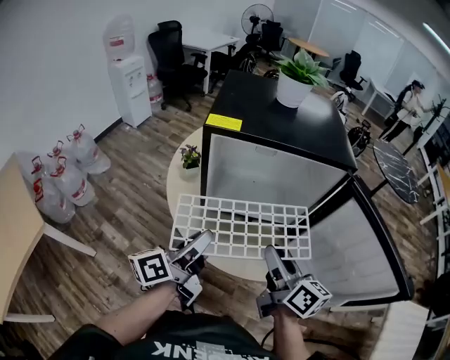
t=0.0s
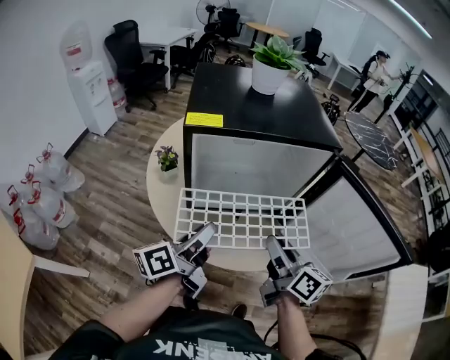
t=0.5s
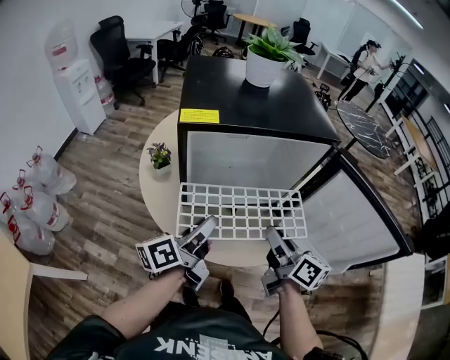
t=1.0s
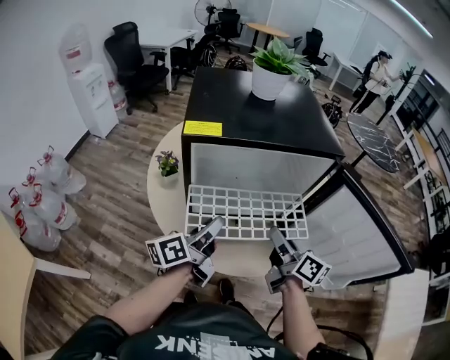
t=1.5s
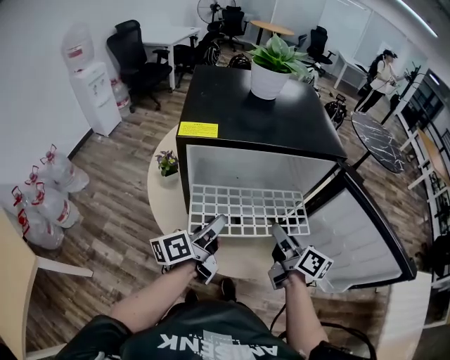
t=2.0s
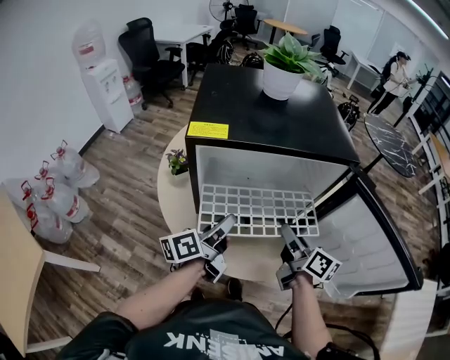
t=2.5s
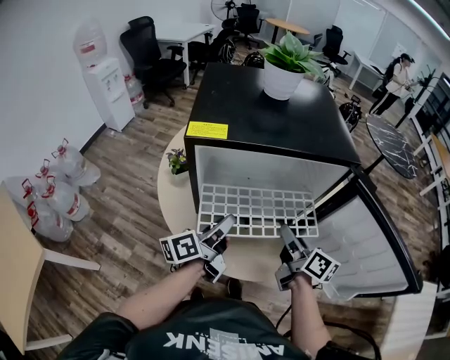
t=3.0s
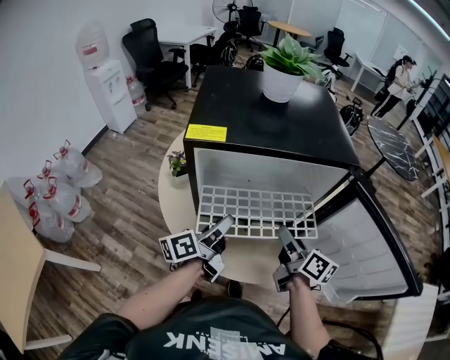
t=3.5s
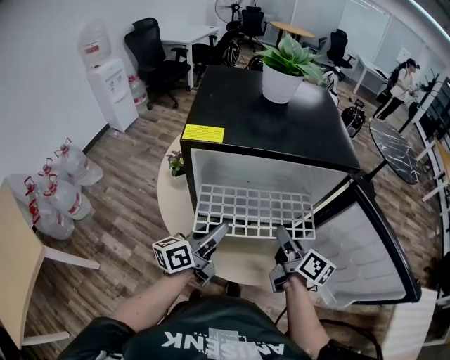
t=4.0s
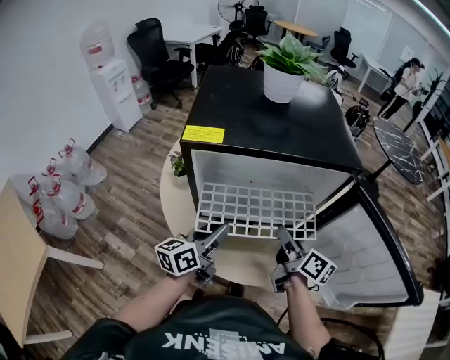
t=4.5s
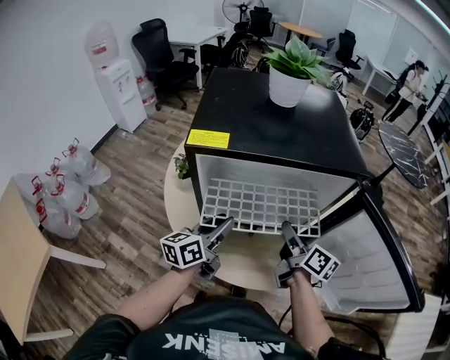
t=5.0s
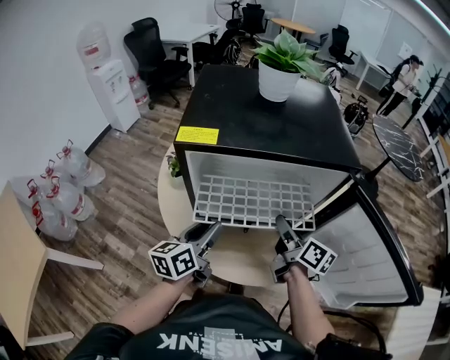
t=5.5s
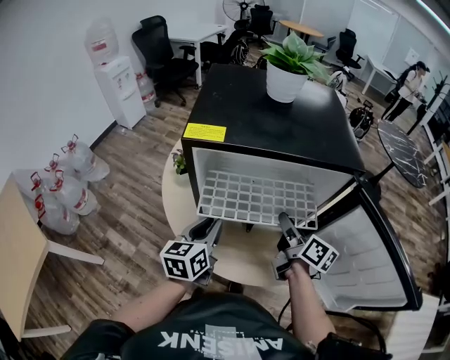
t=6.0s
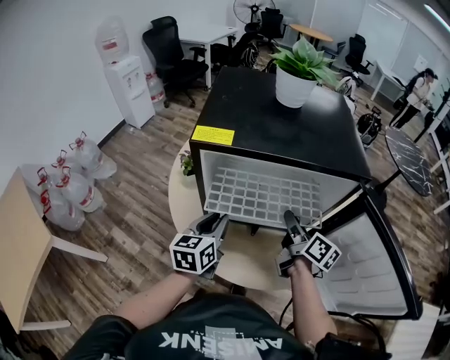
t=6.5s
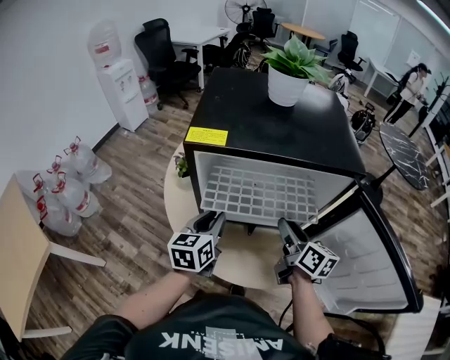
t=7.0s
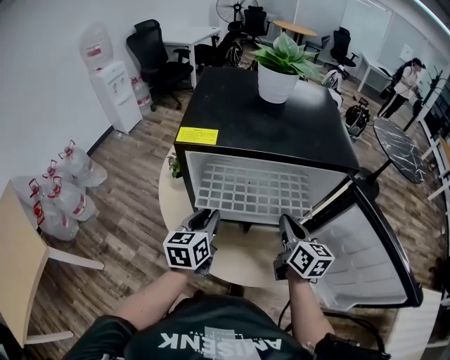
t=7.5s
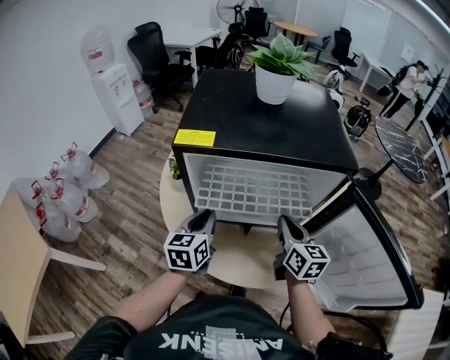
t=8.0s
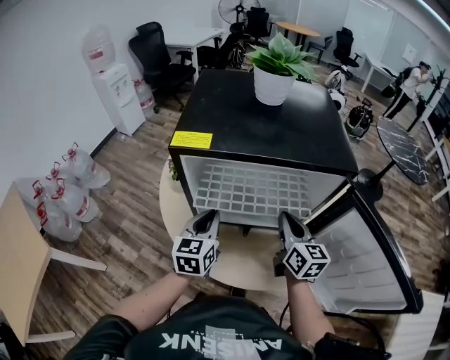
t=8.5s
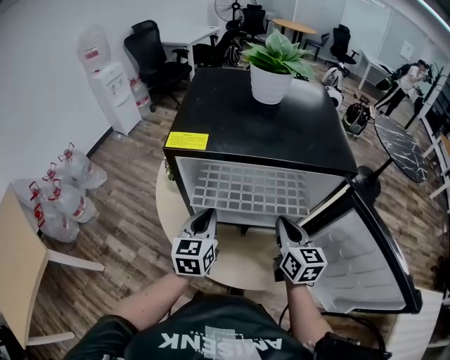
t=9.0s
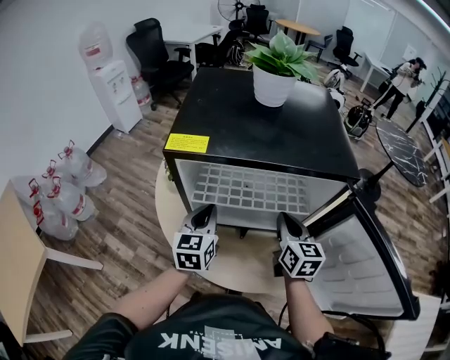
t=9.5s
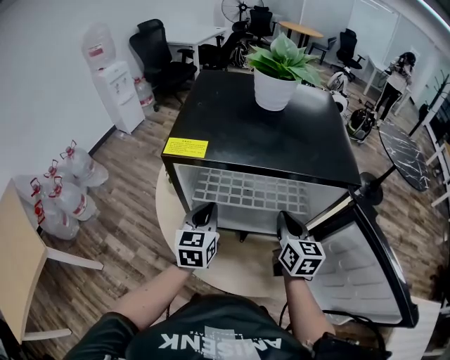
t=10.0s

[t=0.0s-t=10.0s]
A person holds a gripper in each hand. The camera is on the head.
t=0.0s to t=2.0s: The right gripper is displaced forward, downward and to the right by some 15 cm. The left gripper travels forward by about 10 cm.
t=2.0s to t=4.0s: The grippers move only a little.
t=4.0s to t=6.0s: The right gripper moves some 5 cm. Meanwhile the left gripper swivels about 30 degrees.
t=6.0s to t=8.0s: The right gripper rotates about 30 degrees, and closes up.
t=8.0s to t=10.0s: The two grippers go about 5 cm forward.

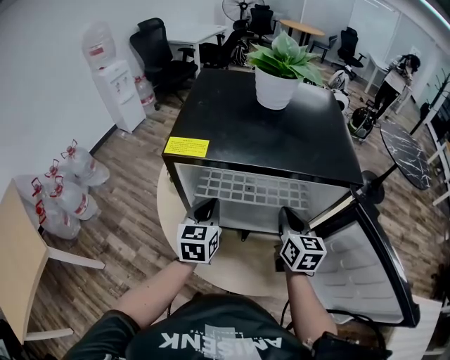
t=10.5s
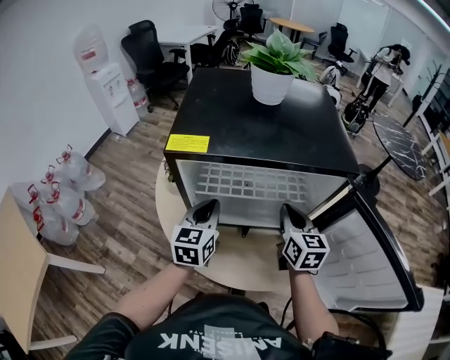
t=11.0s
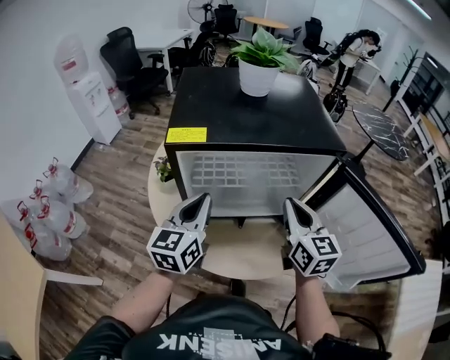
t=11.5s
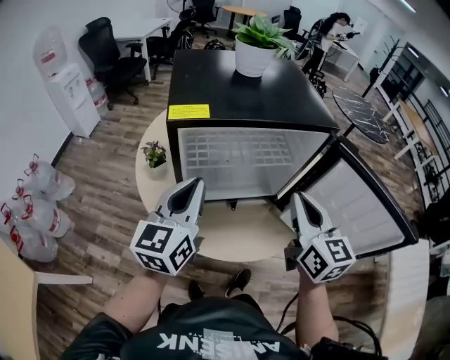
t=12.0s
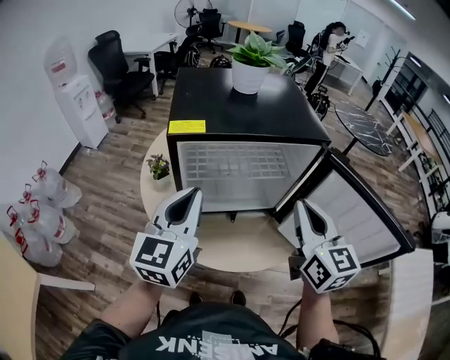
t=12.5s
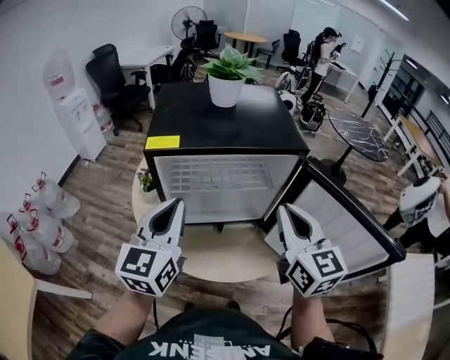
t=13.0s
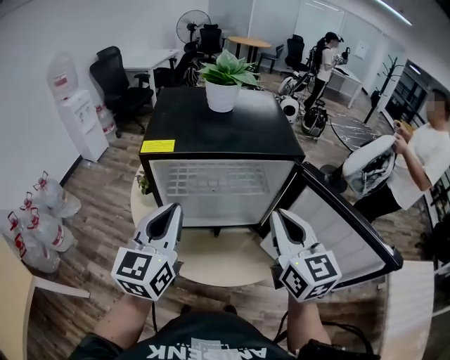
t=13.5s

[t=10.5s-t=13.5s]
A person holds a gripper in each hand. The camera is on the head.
t=10.5s to t=12.0s: The right gripper heads backward and upward, covering some 20 cm, while the left gripper shifts about 15 cm upward and backward, and turns by some 30 degrees.
t=12.0s to t=13.5s: The left gripper changes place by about 5 cm. The right gripper moves approximately 5 cm.

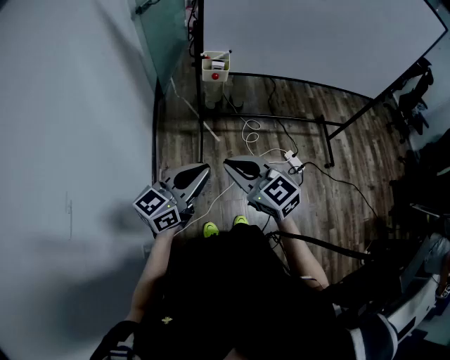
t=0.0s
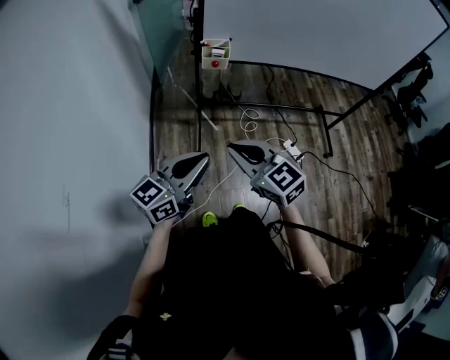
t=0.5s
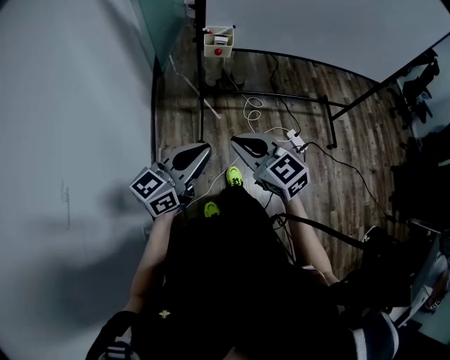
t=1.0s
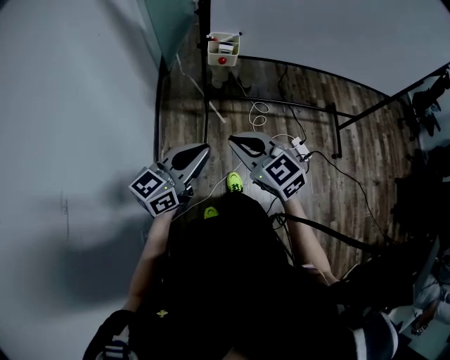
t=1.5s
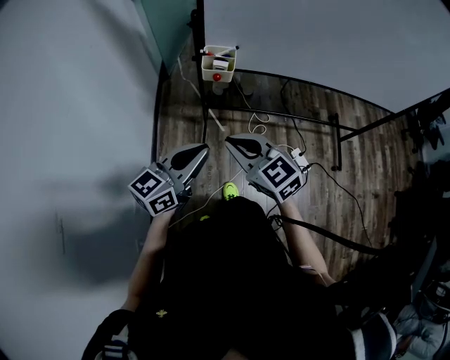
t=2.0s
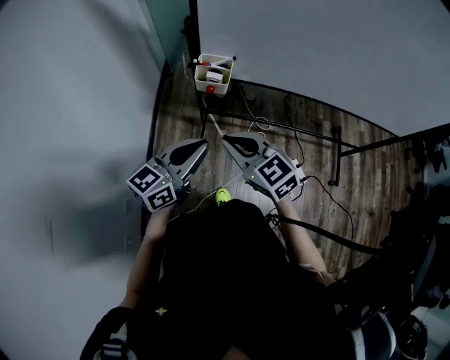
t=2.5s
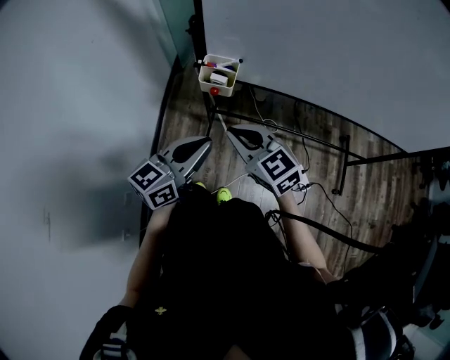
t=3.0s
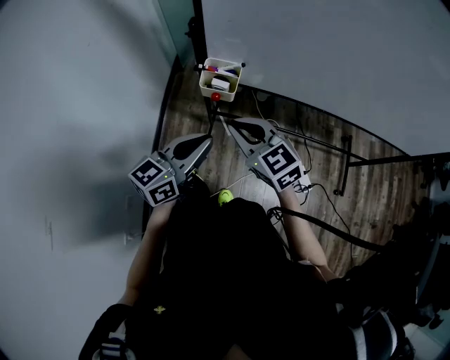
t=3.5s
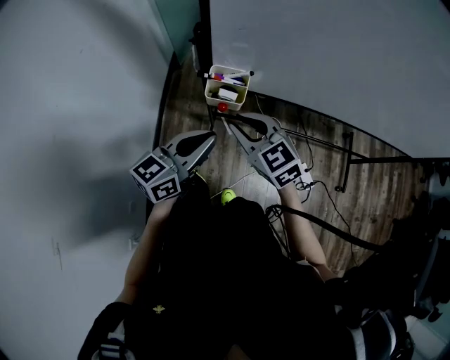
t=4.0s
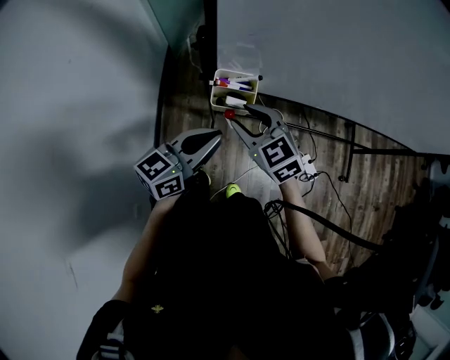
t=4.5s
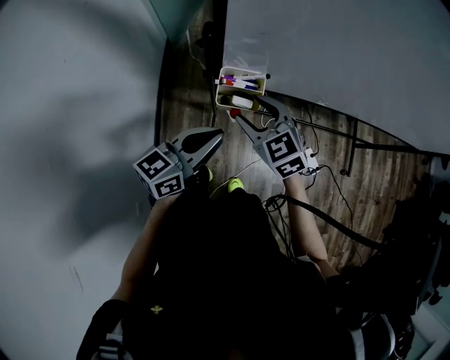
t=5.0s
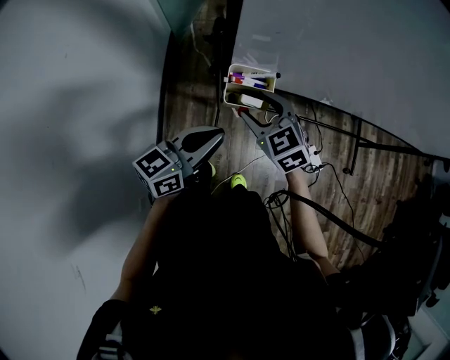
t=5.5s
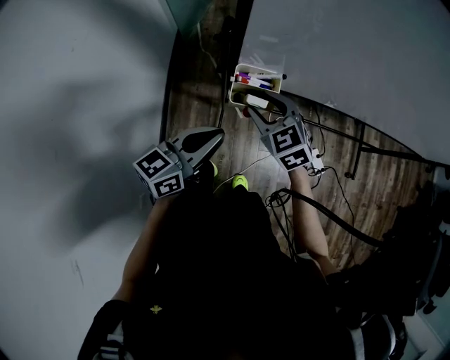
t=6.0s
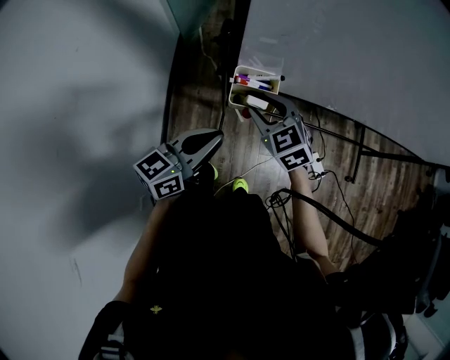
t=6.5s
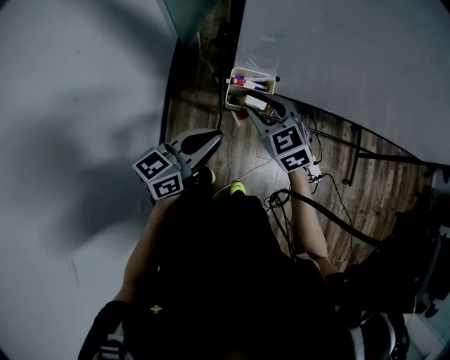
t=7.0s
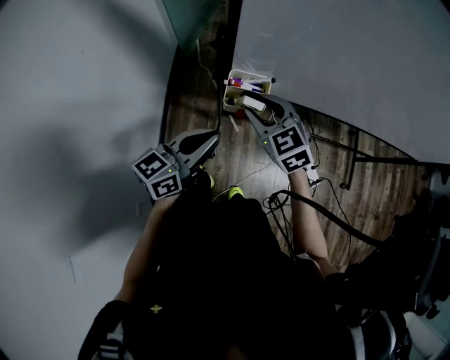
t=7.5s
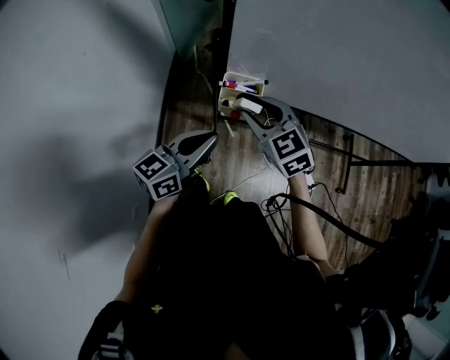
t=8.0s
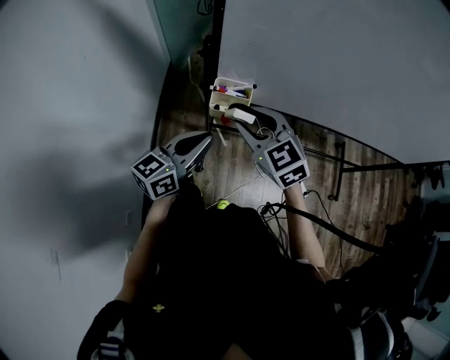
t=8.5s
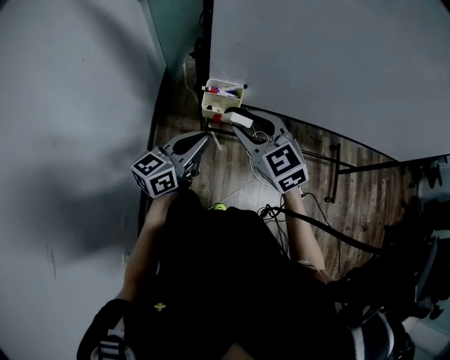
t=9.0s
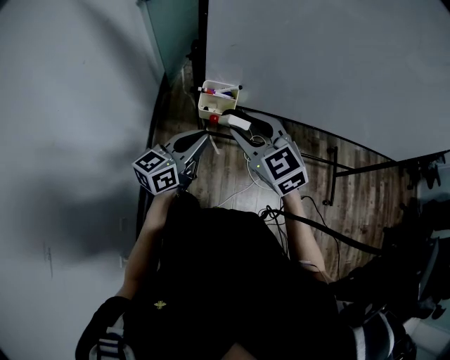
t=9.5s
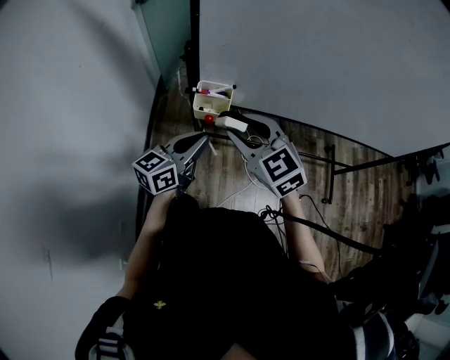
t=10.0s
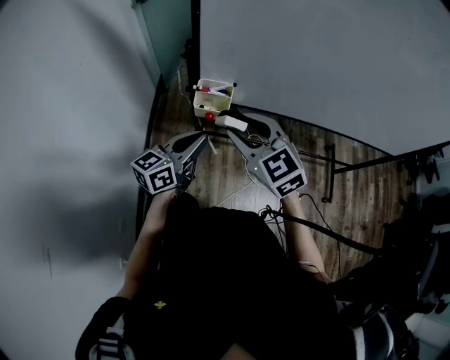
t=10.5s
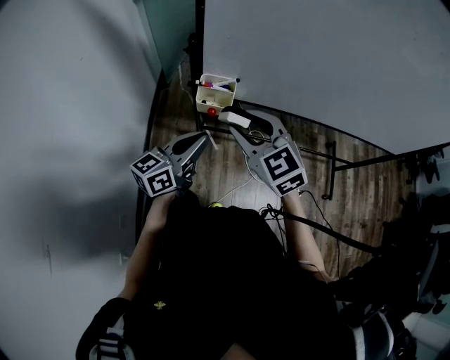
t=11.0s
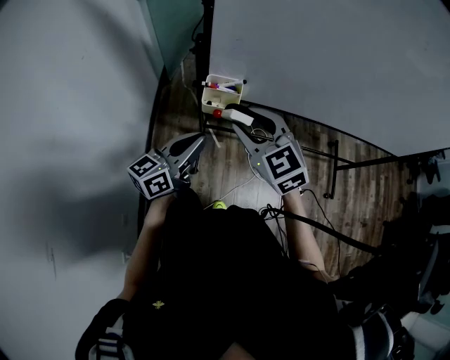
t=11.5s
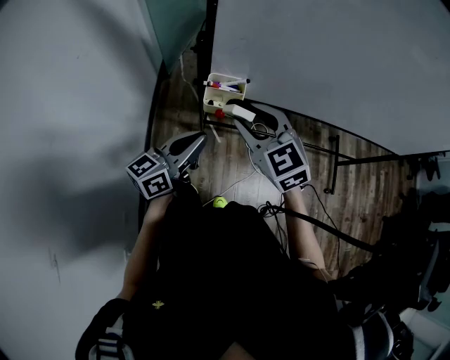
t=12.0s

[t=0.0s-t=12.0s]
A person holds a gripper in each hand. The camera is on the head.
t=0.0s to t=2.0s: Both grippers move forward, roughly 15 cm.
t=2.0s to t=4.0s: The grippers both shift forward by about 20 cm.
t=4.0s to t=6.0s: The right gripper travels forward and downward by approximately 10 cm, and opens its fingers. The left gripper heads to the left, covering about 5 cm.
t=6.0s to t=8.0s: The right gripper goes approximately 10 cm upward.
t=8.0s to t=10.0s: The right gripper moves backward and upward, approximately 10 cm.
t=10.0s to t=12.0s: The grippers stay close to where they were, moving slightly.

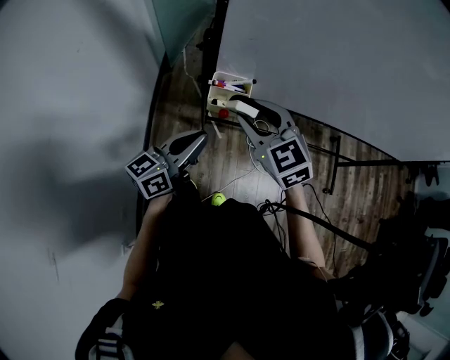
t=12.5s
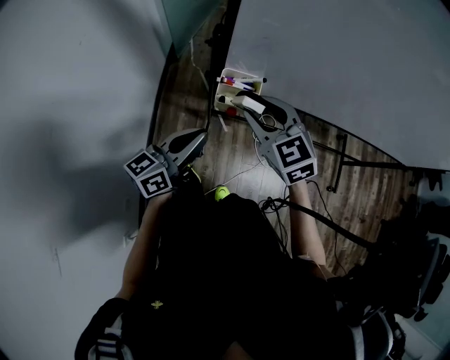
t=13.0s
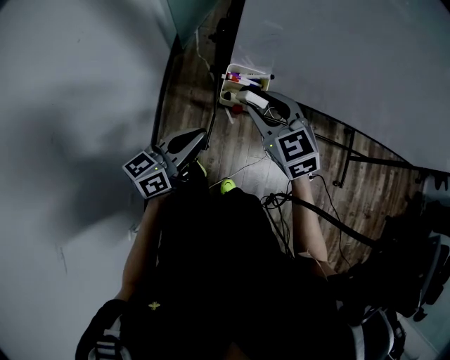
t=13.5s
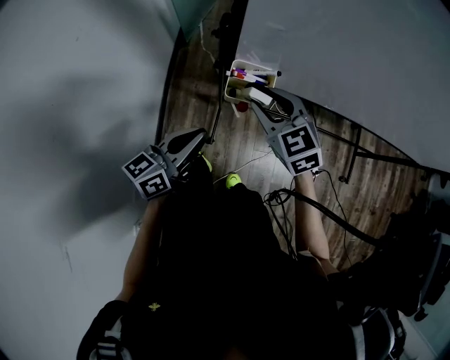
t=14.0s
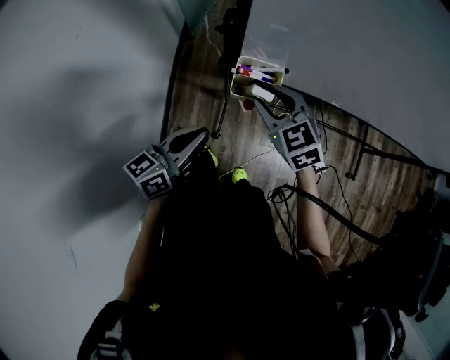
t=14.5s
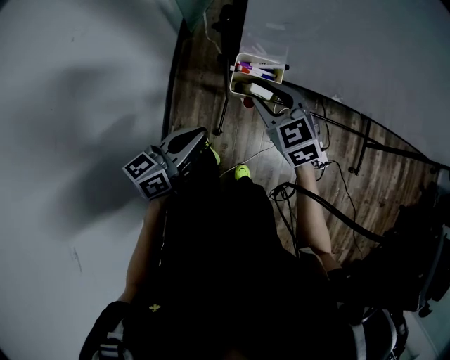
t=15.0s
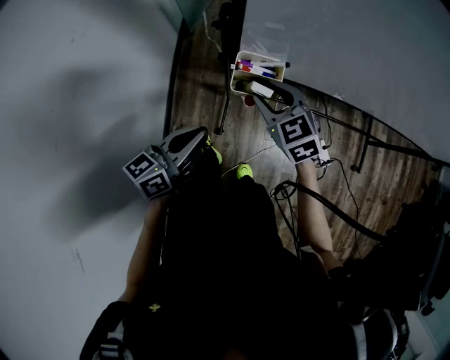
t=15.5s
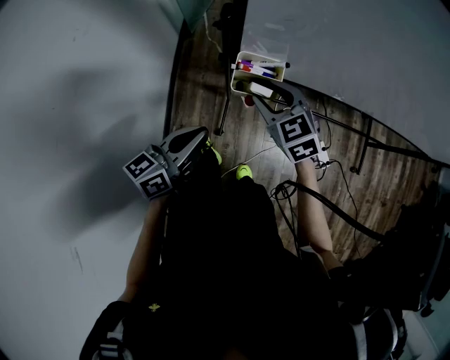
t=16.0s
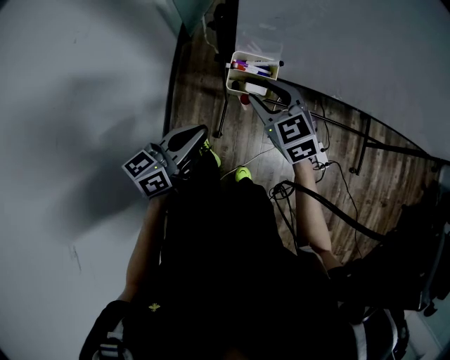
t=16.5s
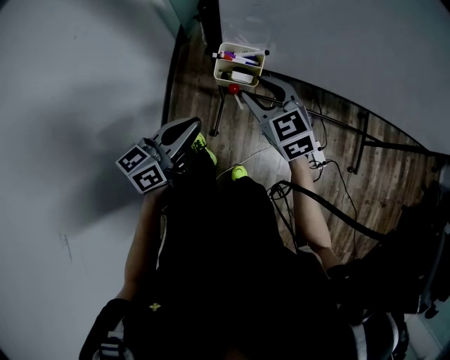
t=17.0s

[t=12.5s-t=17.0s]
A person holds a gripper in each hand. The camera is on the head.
t=12.5s to t=14.5s: The left gripper moves about 5 cm; the right gripper moves downward and forward, some 10 cm.
t=14.5s to t=17.0s: The grippers make only small movements.
